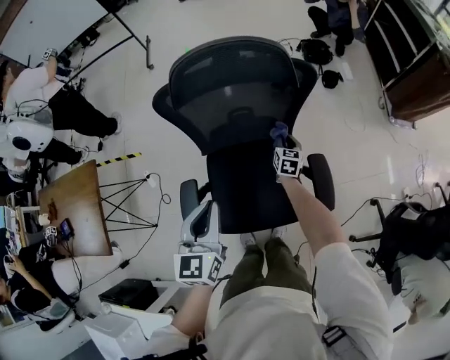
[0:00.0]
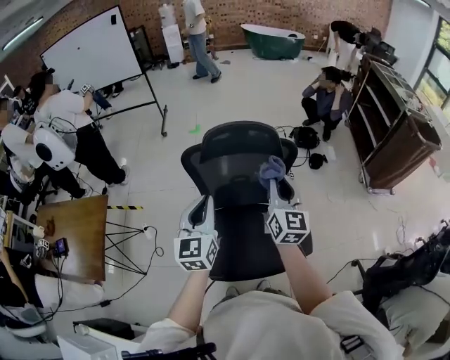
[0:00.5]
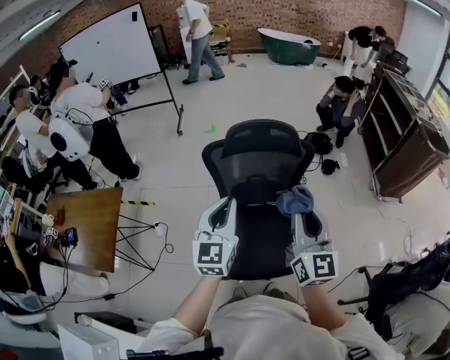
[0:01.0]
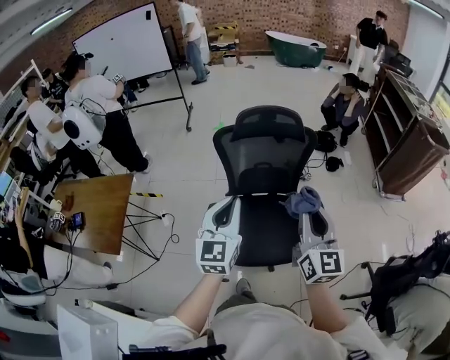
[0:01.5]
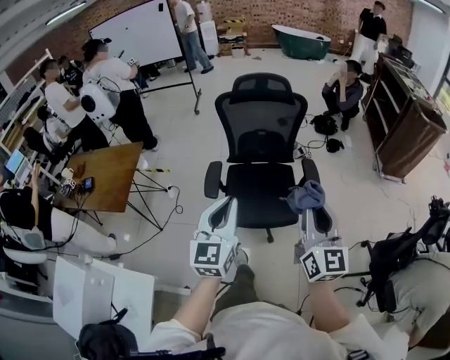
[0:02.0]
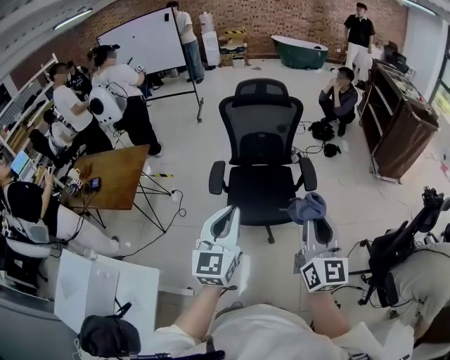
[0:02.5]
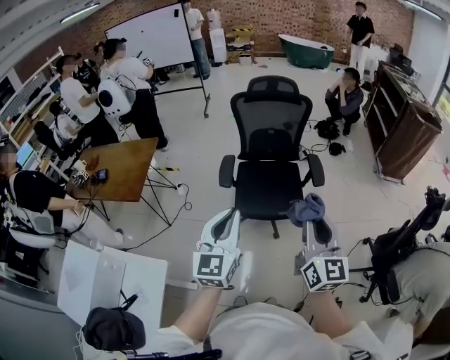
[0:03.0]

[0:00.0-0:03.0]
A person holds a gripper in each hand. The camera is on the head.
0:00.0 to 0:01.5: The left gripper goes about 35 cm backward, and turns by roughly 20 degrees, while the right gripper is displaced backward and upward by approximately 80 cm, and points its fingers some 50 degrees further upward.
0:01.5 to 0:03.0: Both grippers travel together backward, about 35 cm.

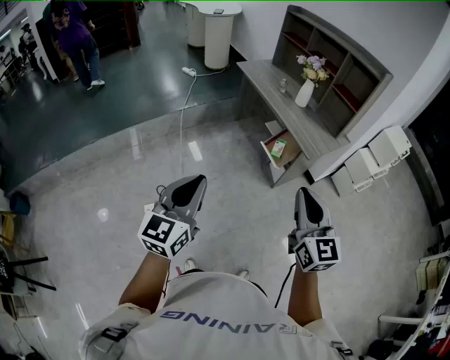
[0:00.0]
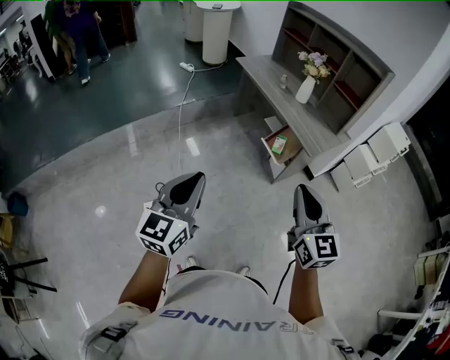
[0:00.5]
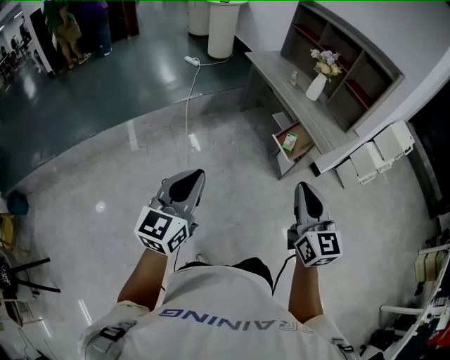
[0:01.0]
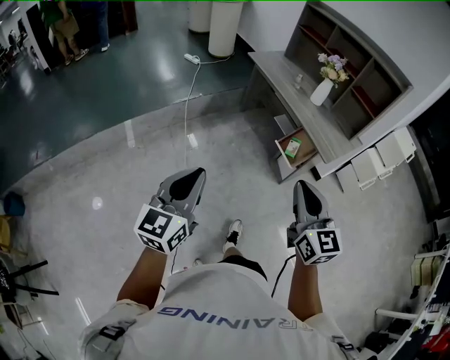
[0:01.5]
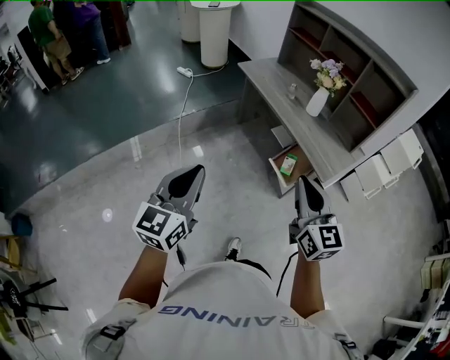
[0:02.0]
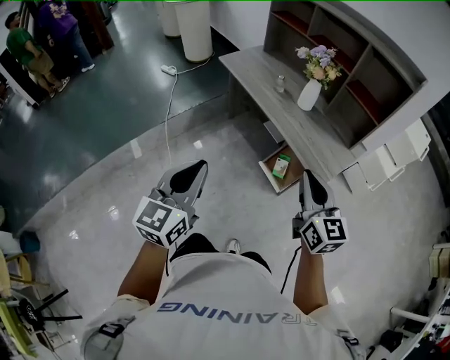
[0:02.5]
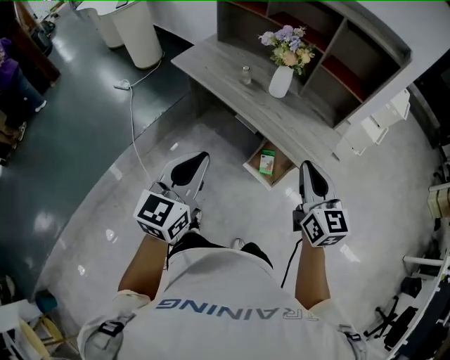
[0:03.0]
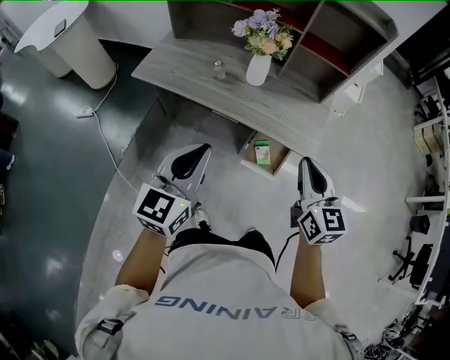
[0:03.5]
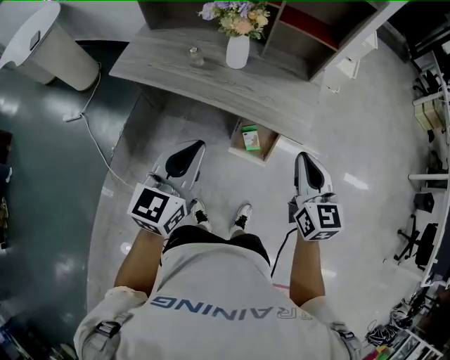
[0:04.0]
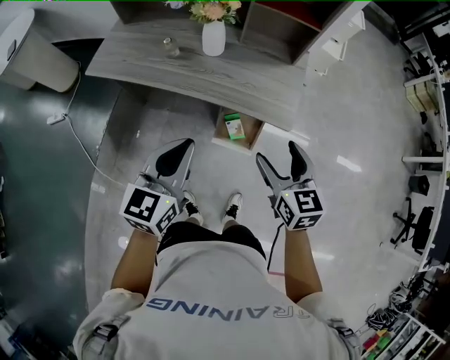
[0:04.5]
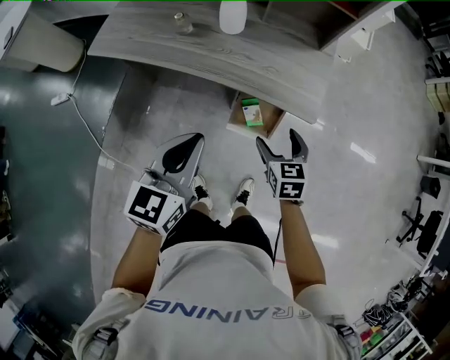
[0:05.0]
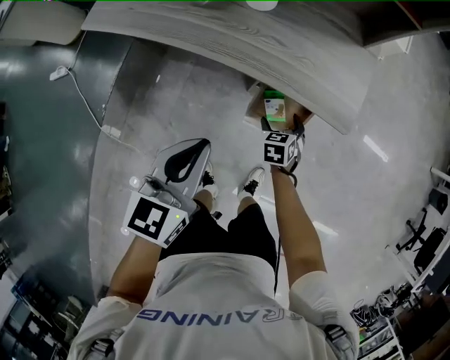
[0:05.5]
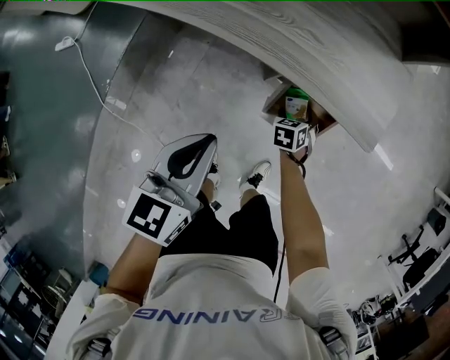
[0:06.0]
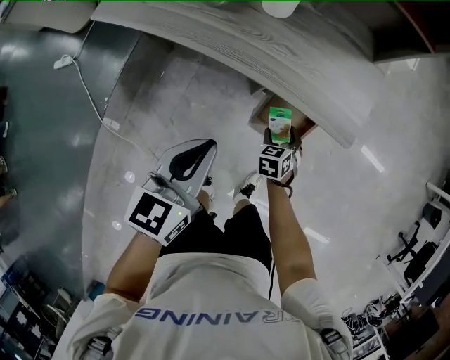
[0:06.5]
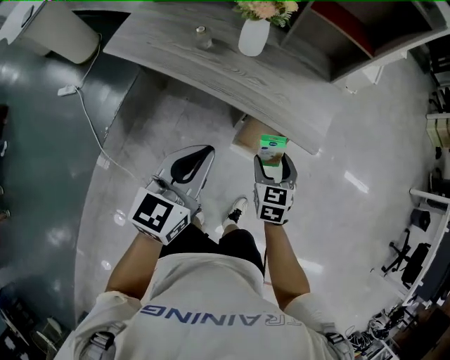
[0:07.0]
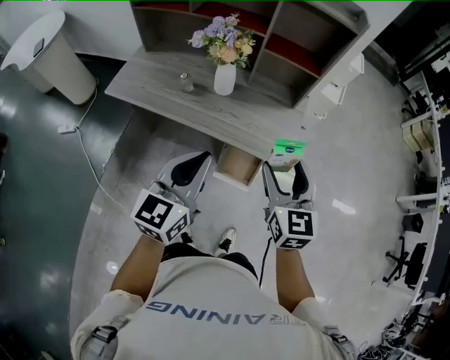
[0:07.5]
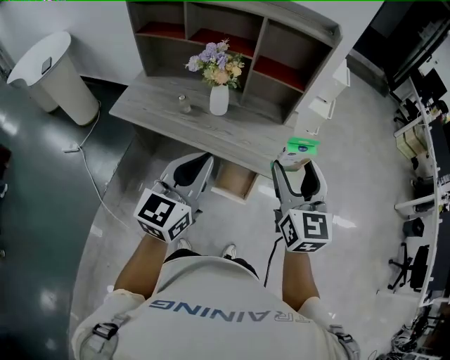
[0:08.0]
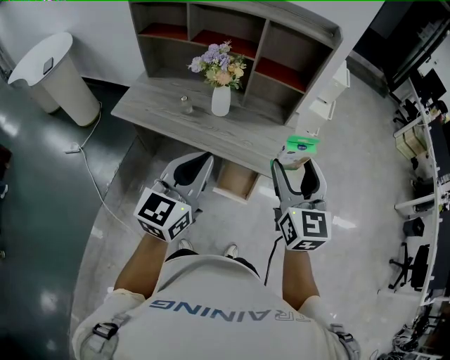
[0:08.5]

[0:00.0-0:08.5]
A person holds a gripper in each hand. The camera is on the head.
0:00.0 to 0:02.0: The two grippers go about 20 cm forward.
0:02.0 to 0:04.0: The right gripper ends up about 25 cm from where it was, and changes its angle by roughly 50 degrees. Meanwhile the left gripper ends up some 40 cm from where it was, and rotates roughly 50 degrees.
0:04.0 to 0:06.5: The left gripper goes some 15 cm downward, while the right gripper travels downward by roughly 40 cm, tilts its fingers about 40 degrees downward, and opens.
0:06.5 to 0:08.5: The right gripper goes approximately 50 cm upward, and angles its fingers upward, by some 50 degrees. Meanwhile the left gripper shifts about 25 cm upward, and changes its angle by approximately 30 degrees.

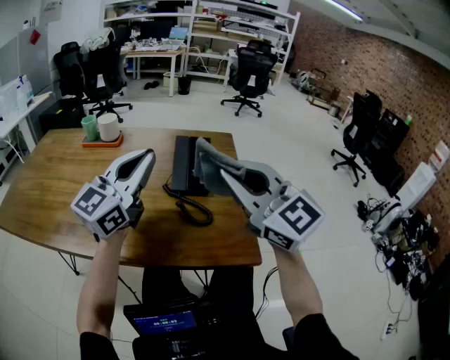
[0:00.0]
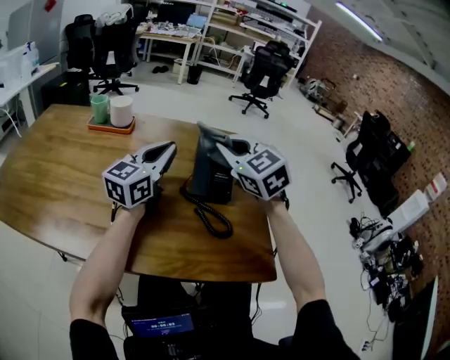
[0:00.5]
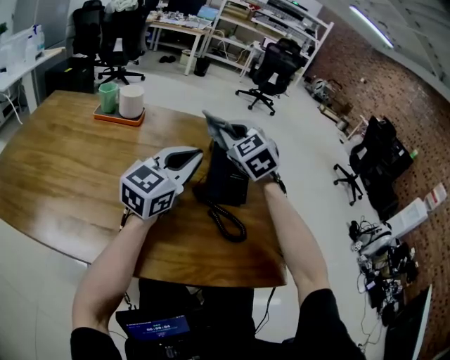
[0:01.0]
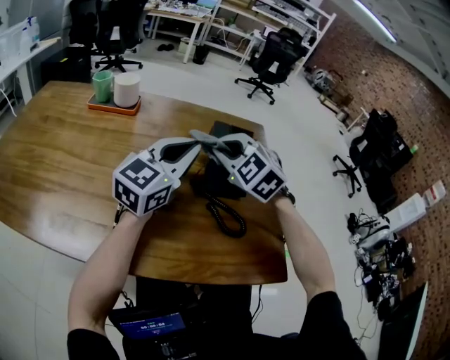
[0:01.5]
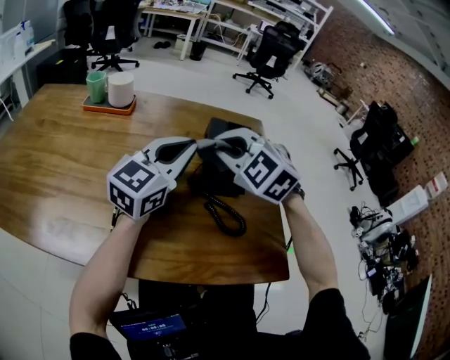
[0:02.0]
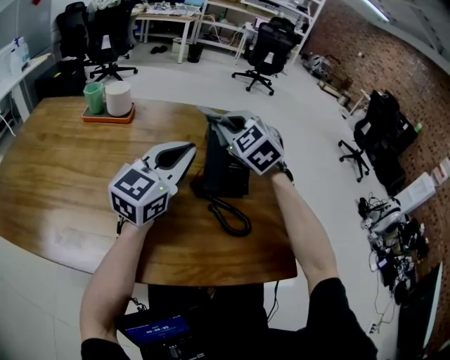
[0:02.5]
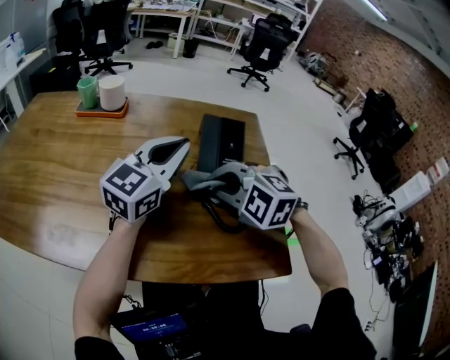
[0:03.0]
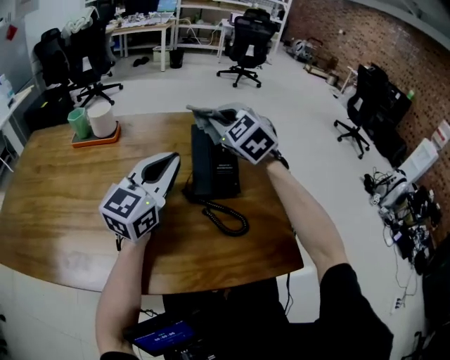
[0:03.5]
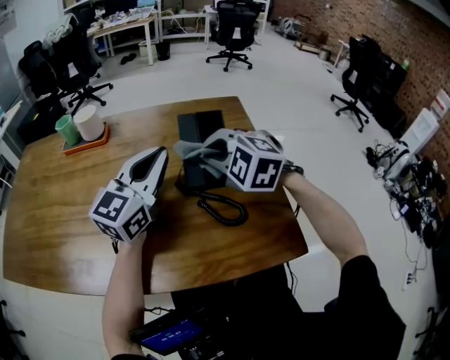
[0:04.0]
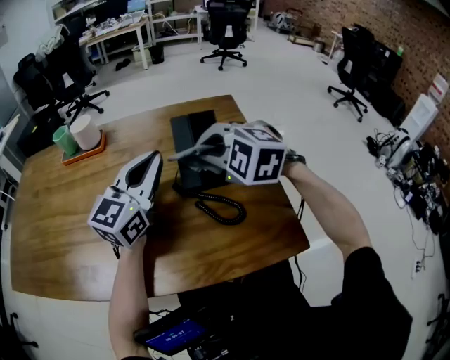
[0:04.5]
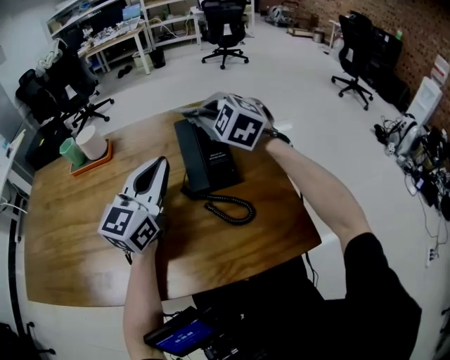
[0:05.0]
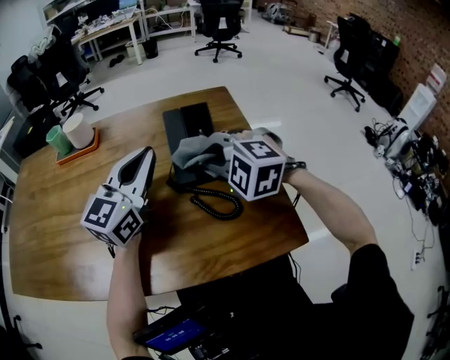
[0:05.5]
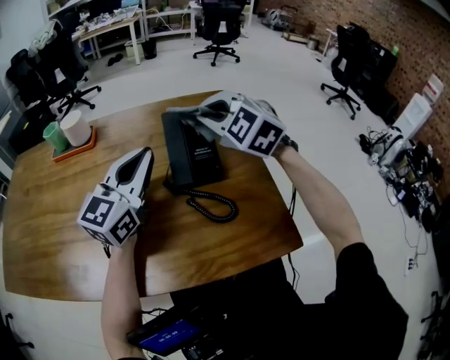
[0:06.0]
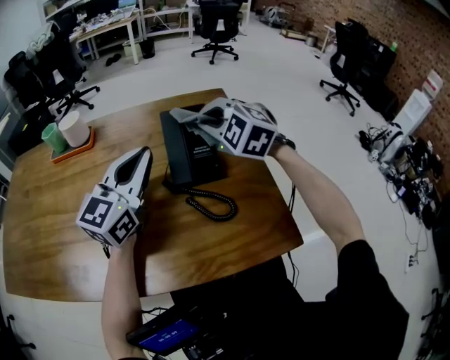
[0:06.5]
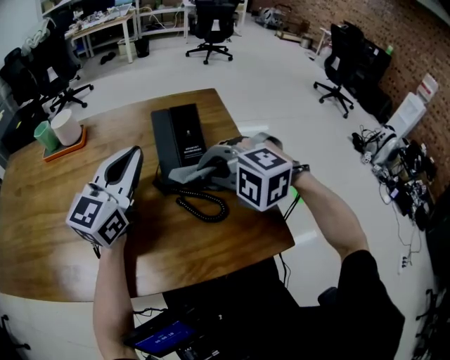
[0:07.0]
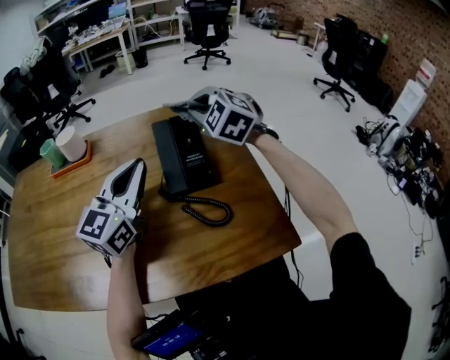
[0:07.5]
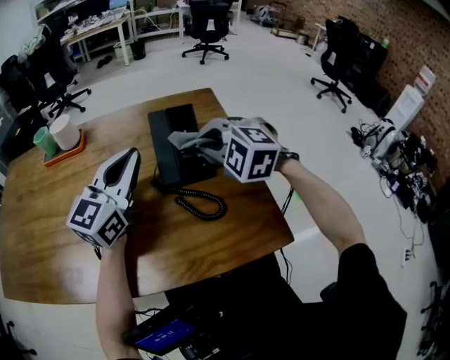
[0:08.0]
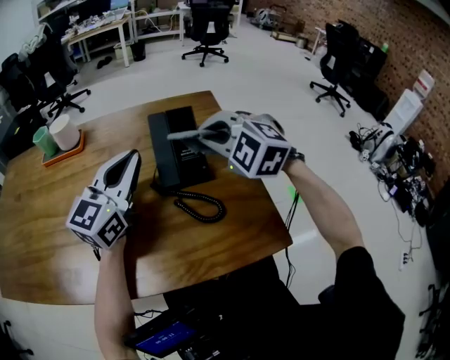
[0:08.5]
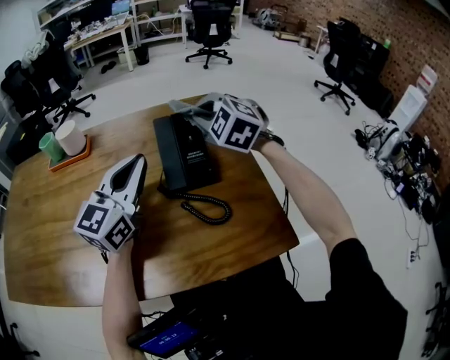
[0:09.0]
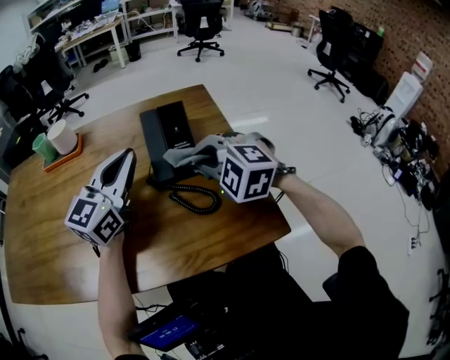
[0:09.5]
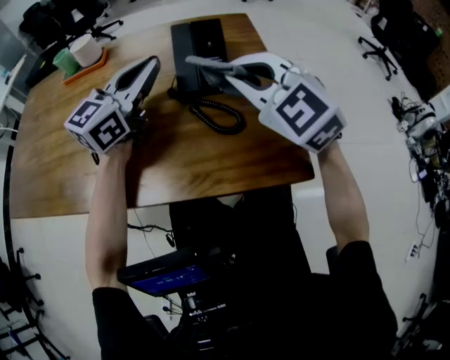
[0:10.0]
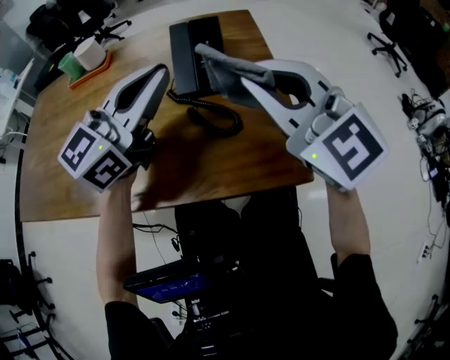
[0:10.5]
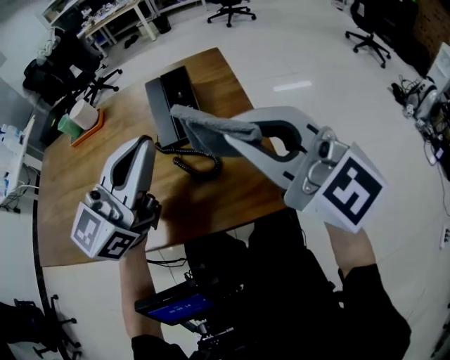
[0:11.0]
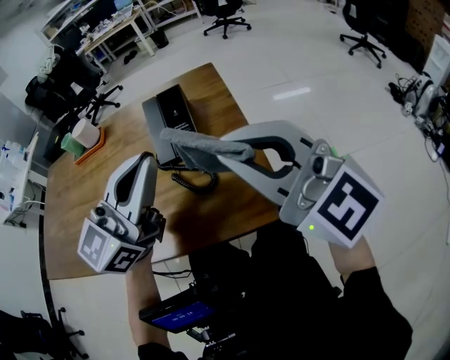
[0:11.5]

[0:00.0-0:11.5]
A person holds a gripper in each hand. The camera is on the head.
0:00.0 to 0:02.0: The left gripper moves forward and downward, about 15 cm. Meanwhile the right gripper heads forward, downward and to the left, covering some 25 cm, and points its fingers some 40 degrees further downward.
0:02.0 to 0:04.0: The right gripper moves forward and backward over approximately 20 cm, changing direction 3 times.
0:04.0 to 0:06.0: The right gripper moves forward and backward over roughly 15 cm, changing direction 2 times.
0:06.0 to 0:07.5: The right gripper moves some 10 cm backward and comes back.
0:07.5 to 0:09.5: The right gripper swings forward and backward, approximately 15 cm each way, with 2 reversals.
0:09.5 to 0:11.5: The right gripper moves upward, backward and to the right, some 25 cm, and points its fingers about 50 degrees further upward. The left gripper heads backward, to the right and upward, covering roughly 20 cm.

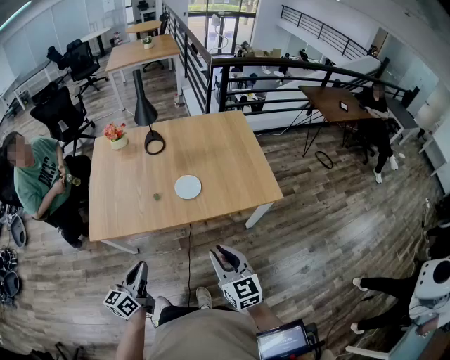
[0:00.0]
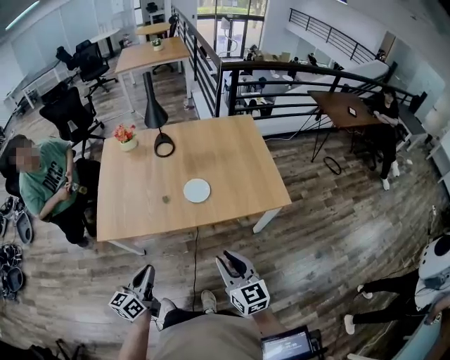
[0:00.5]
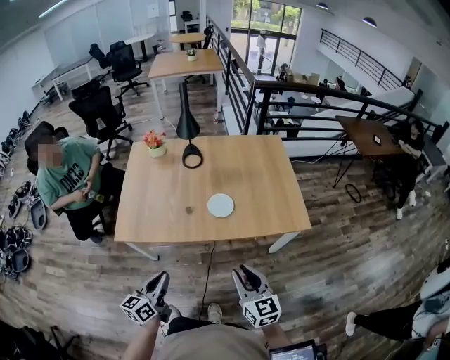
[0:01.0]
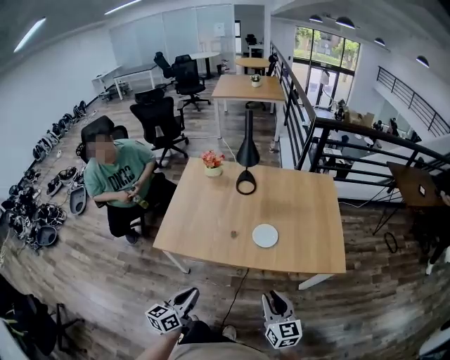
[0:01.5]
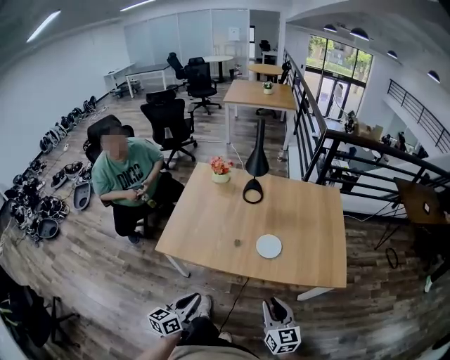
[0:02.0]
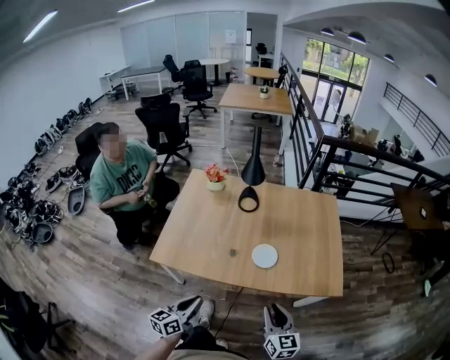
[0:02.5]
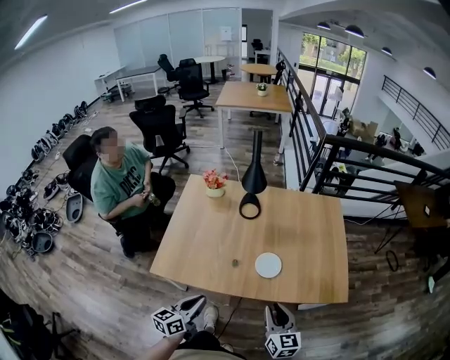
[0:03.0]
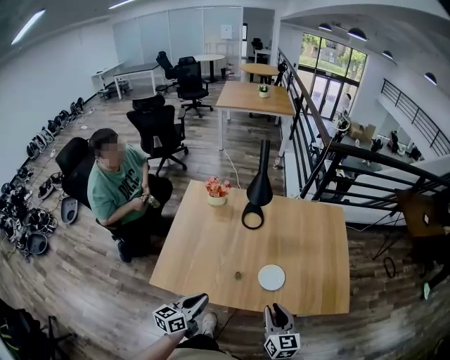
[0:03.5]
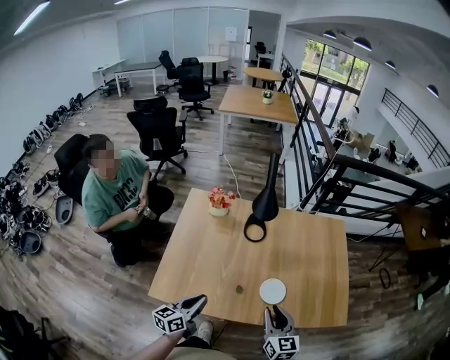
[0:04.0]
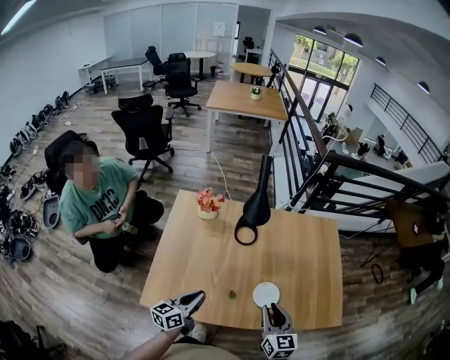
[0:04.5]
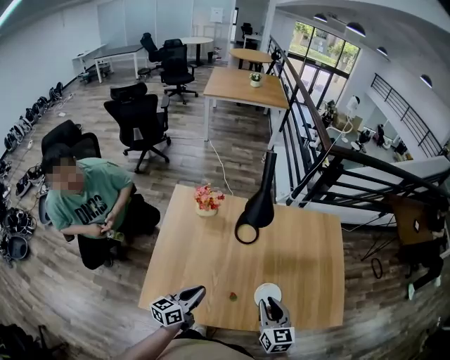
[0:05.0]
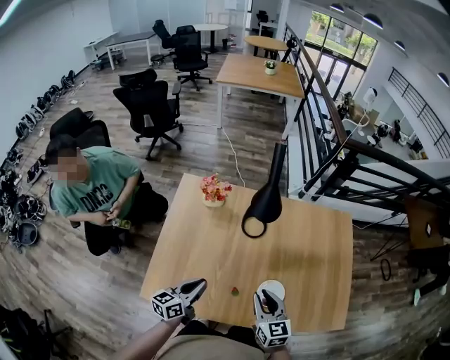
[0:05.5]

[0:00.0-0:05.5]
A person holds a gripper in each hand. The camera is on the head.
0:00.0 to 0:02.0: The right gripper moves forward, some 5 cm.
0:02.0 to 0:03.5: Both grippers move forward, some 20 cm.
0:03.5 to 0:05.5: The right gripper shifts approximately 20 cm forward and to the left. The left gripper goes about 20 cm forward.
